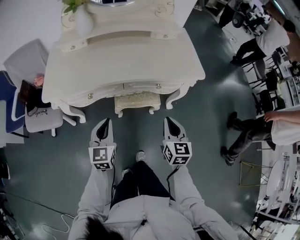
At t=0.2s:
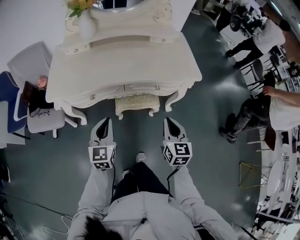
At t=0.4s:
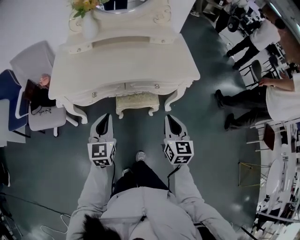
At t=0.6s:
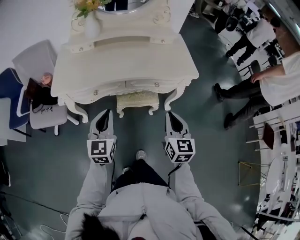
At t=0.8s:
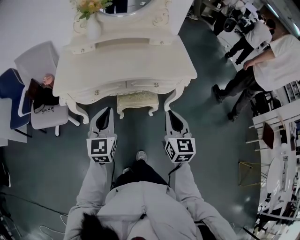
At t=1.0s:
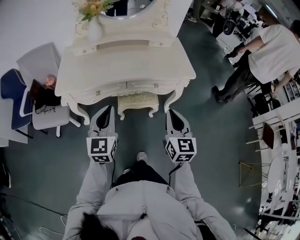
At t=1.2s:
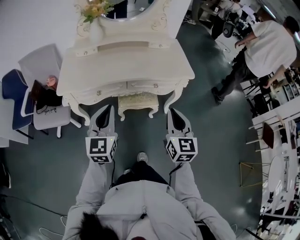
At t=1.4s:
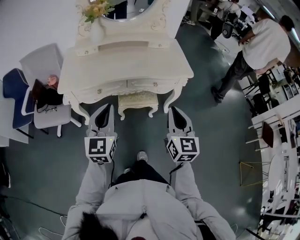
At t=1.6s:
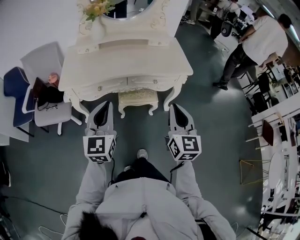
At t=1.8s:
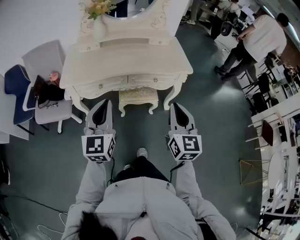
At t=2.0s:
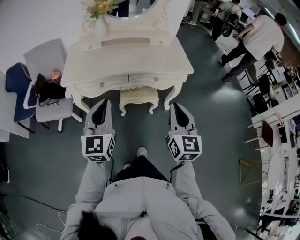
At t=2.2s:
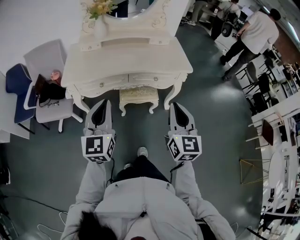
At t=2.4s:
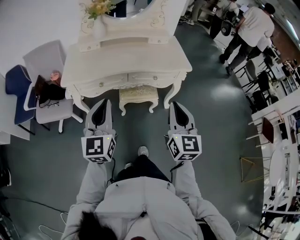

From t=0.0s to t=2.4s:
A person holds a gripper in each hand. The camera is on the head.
From t=0.0s to t=1.2s: Both grippers move upward and backward, some 20 cm.
From t=1.2s to t=2.4s: The two grippers go roughly 10 cm backward and upward.

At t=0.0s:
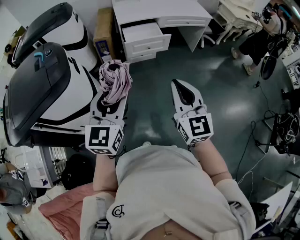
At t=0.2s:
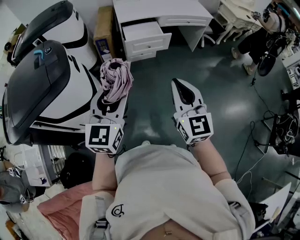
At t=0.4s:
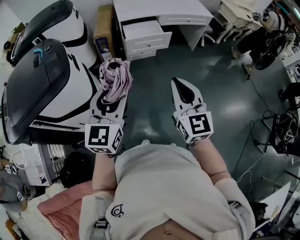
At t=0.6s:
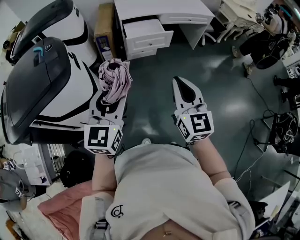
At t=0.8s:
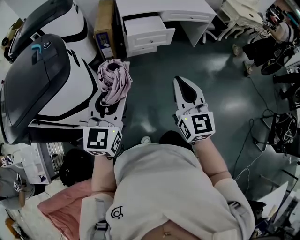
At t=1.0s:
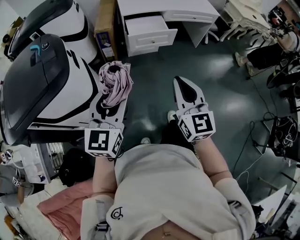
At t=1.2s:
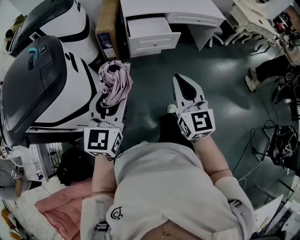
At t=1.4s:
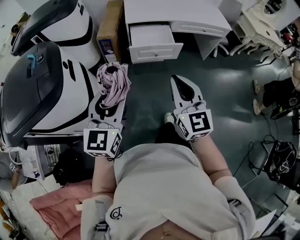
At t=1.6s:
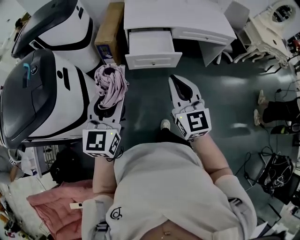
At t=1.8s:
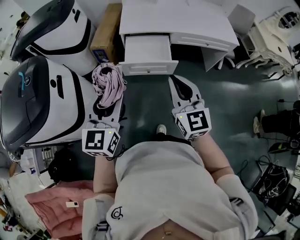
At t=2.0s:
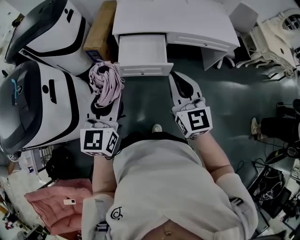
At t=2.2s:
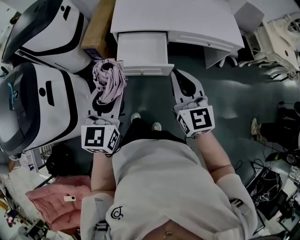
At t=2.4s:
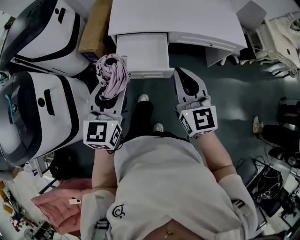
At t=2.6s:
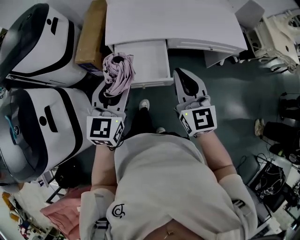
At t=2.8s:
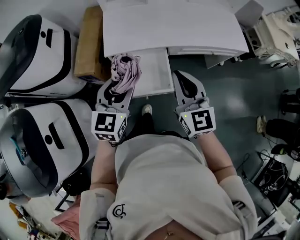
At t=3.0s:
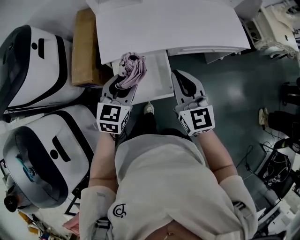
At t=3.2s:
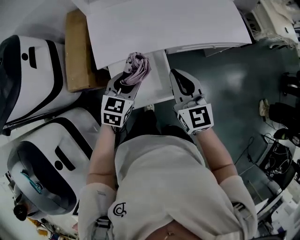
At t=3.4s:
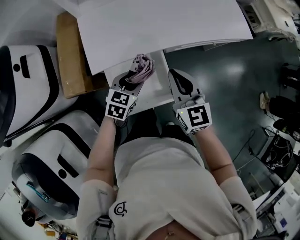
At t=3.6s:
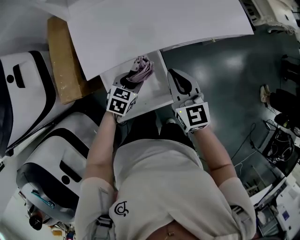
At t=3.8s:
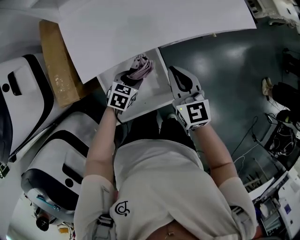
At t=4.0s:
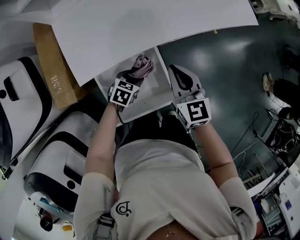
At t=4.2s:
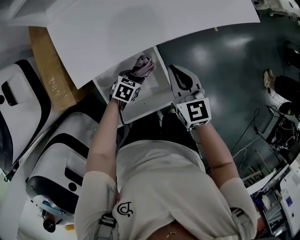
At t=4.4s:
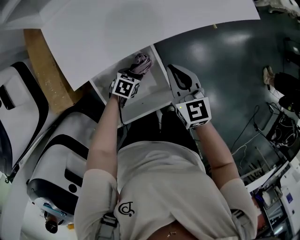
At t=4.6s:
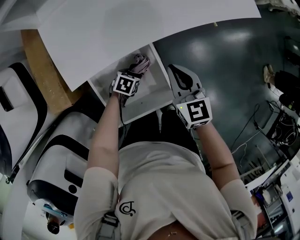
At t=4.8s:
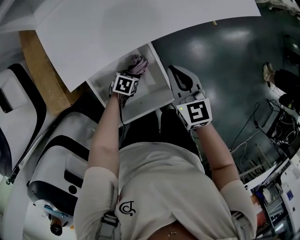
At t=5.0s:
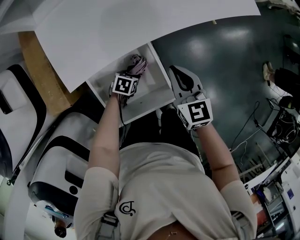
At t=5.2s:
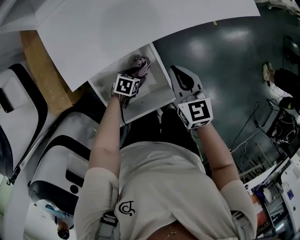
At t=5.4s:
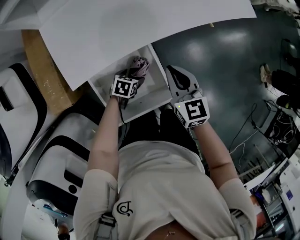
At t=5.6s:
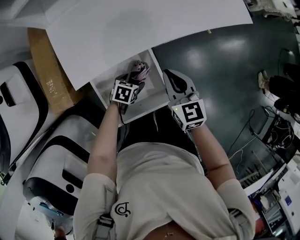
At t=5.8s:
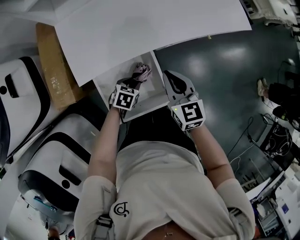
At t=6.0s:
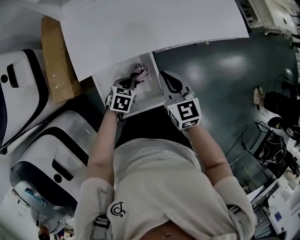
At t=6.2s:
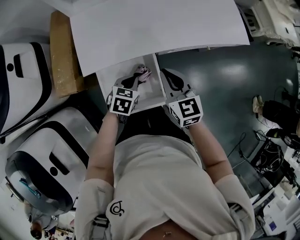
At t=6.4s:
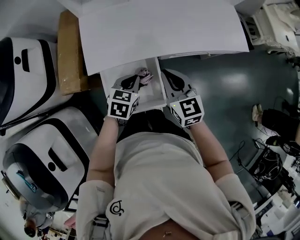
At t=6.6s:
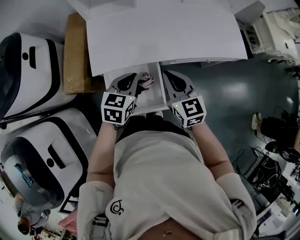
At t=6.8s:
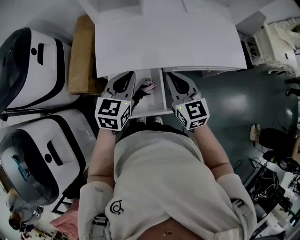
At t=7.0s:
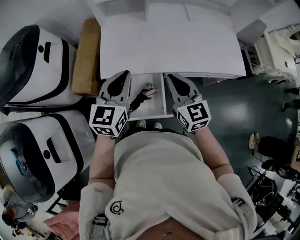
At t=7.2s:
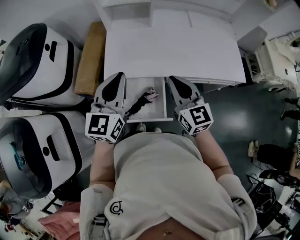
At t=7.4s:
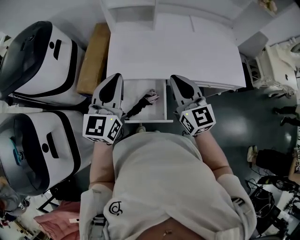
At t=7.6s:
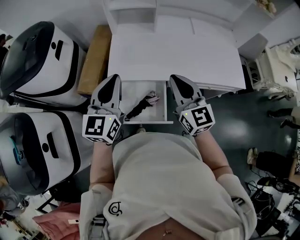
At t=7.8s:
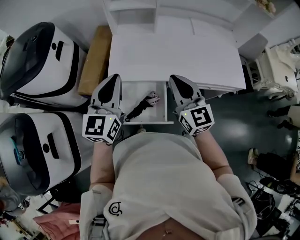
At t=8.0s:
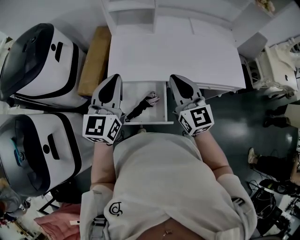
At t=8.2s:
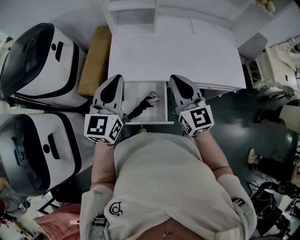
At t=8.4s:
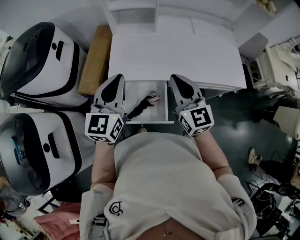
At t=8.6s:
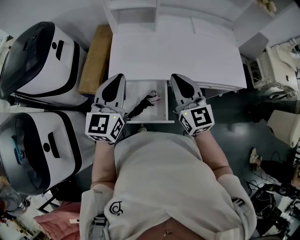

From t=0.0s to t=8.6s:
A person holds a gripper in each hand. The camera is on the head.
From t=0.0s to t=1.4s: The grippers both shift forward by approximately 15 cm.
From t=1.4s to t=2.8s: The two grippers travel together, forward, some 50 cm.
From t=2.8s to t=4.4s: The left gripper is displaced downward by some 40 cm, and tilts its fingers about 40 degrees downward. Meanwhile the right gripper goes approximately 20 cm downward, and changes its angle by approximately 30 degrees.
From t=4.4s to t=5.8s: The left gripper heads upward, covering roughly 5 cm, and opens and closes again.
From t=5.8s to t=7.2s: The left gripper shifts some 40 cm upward, points its fingers roughly 60 degrees further upward, and closes its fingers. Meanwhile the right gripper shifts approximately 20 cm upward, and swivels approximately 30 degrees.
From t=7.2s to t=8.6s: The grippers move only a little.

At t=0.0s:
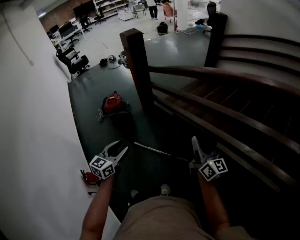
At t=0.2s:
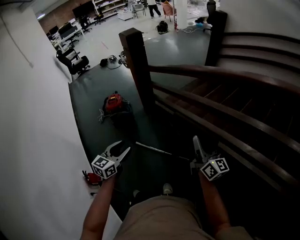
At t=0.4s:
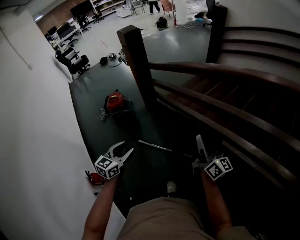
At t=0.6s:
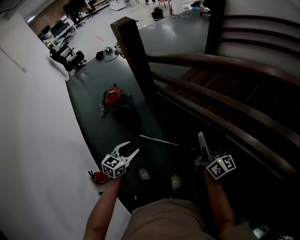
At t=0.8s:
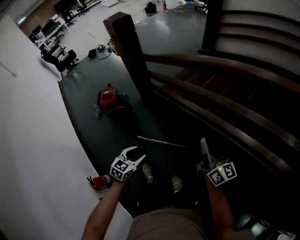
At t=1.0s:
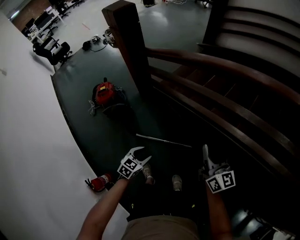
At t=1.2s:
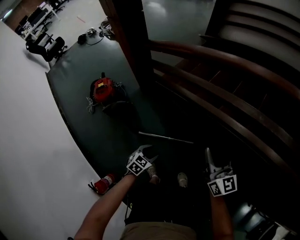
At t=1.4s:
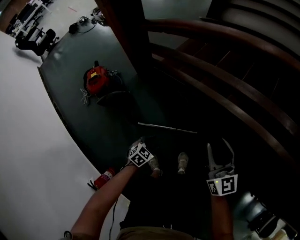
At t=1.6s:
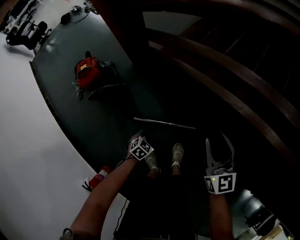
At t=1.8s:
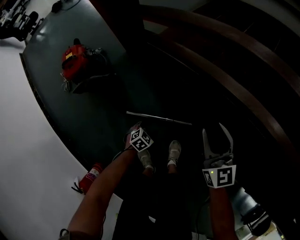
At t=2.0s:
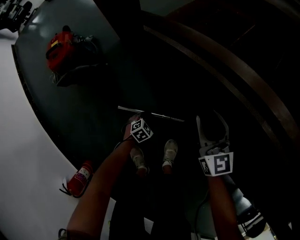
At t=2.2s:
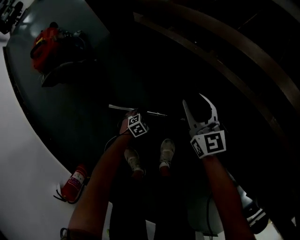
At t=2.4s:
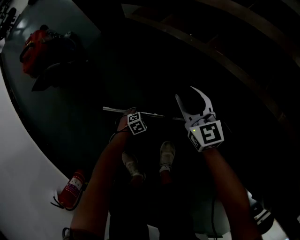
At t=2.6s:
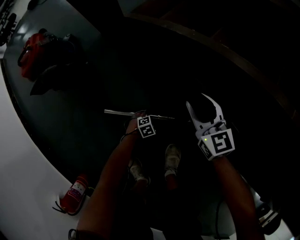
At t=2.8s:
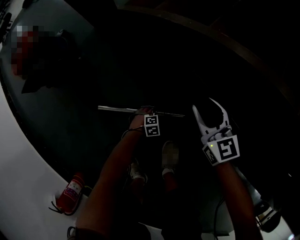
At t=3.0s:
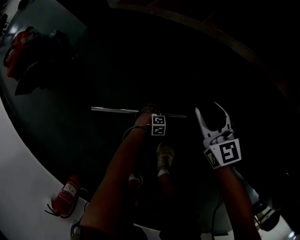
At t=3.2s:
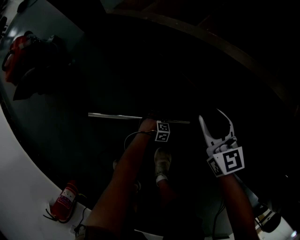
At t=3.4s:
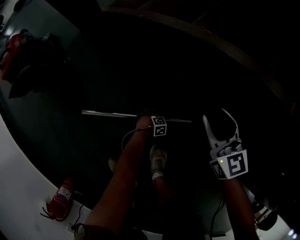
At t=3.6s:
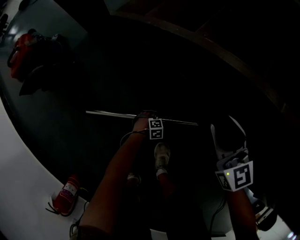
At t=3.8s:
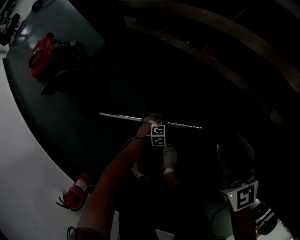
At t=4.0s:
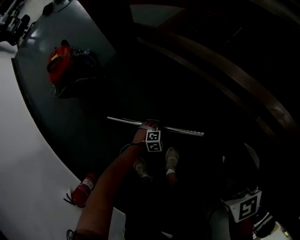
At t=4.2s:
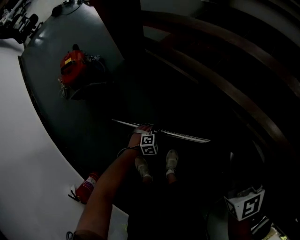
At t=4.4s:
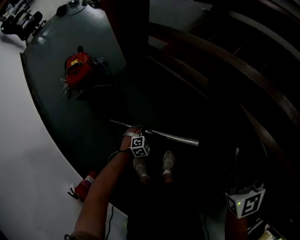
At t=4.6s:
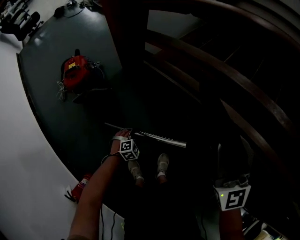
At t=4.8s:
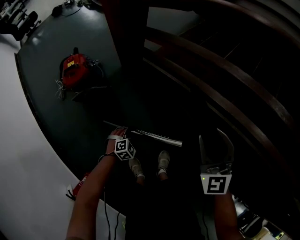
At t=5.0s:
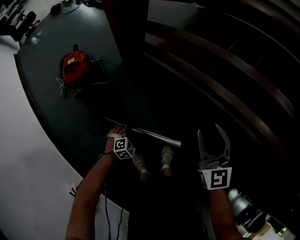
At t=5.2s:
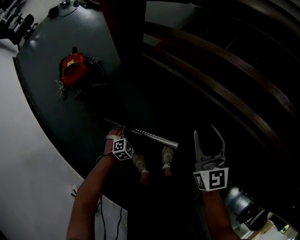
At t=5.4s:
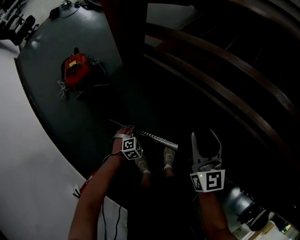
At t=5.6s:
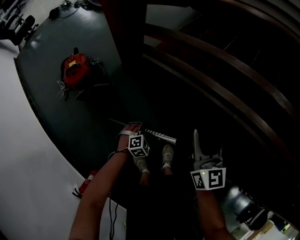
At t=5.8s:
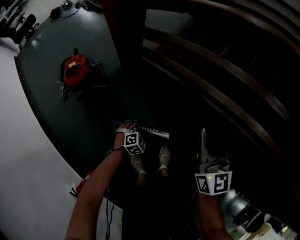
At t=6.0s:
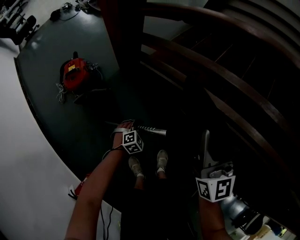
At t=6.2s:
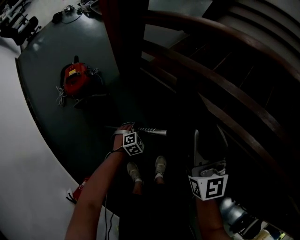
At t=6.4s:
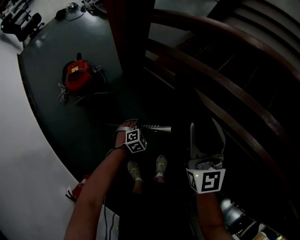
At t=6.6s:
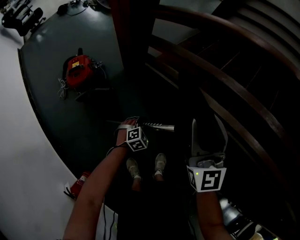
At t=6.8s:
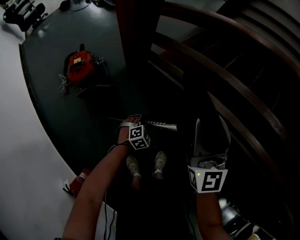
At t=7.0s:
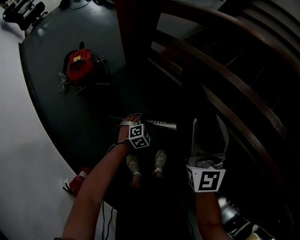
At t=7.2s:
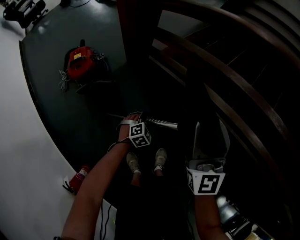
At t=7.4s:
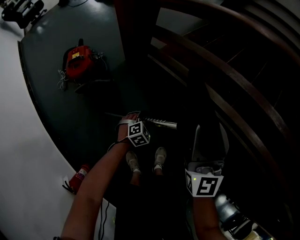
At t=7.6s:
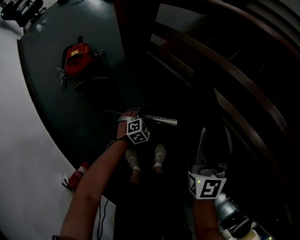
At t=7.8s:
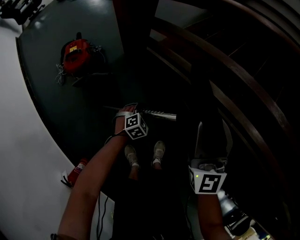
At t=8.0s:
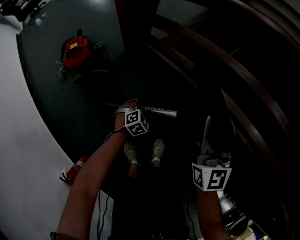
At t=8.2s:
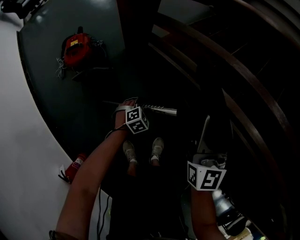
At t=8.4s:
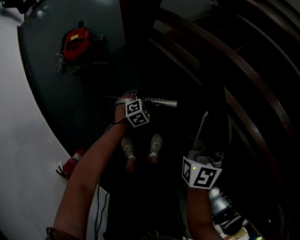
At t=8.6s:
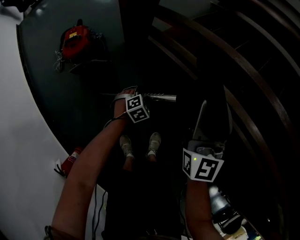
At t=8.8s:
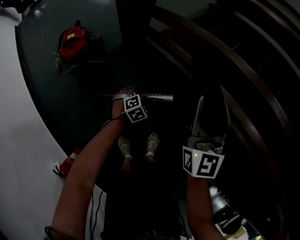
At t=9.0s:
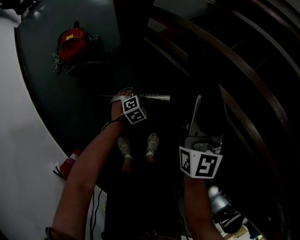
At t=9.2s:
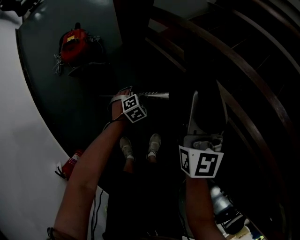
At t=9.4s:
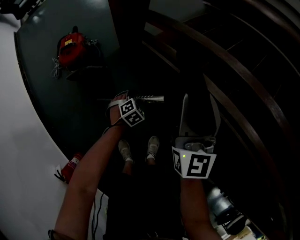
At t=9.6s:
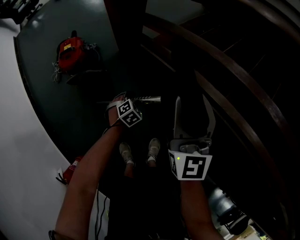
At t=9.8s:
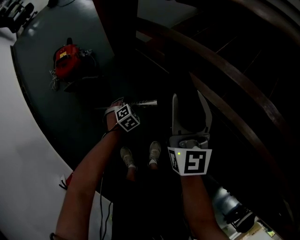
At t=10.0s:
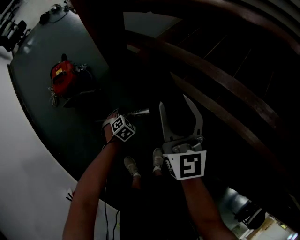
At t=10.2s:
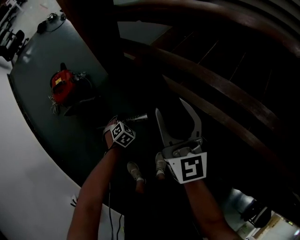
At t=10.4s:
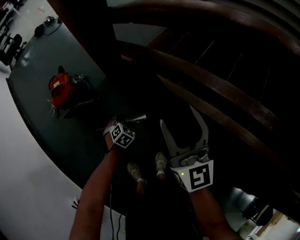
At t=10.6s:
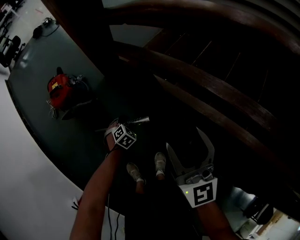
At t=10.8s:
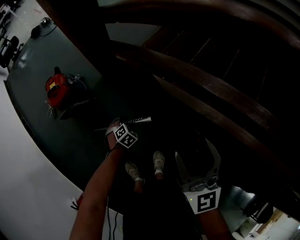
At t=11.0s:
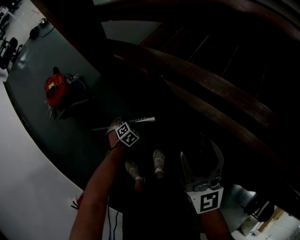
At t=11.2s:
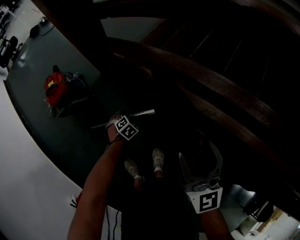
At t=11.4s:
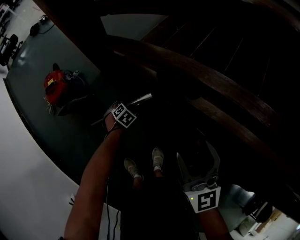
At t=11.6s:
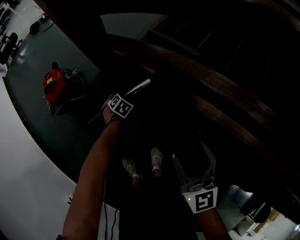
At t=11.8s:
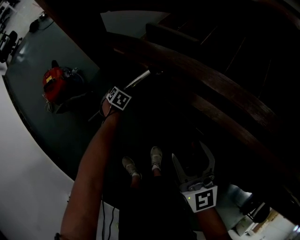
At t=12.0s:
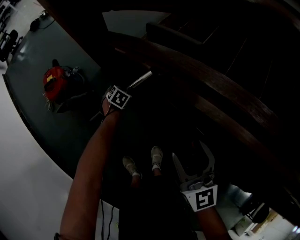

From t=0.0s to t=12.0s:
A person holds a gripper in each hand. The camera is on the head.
From t=0.0s to t=1.6s: The left gripper moves downward, approximately 60 cm, and tilts its fingers some 40 degrees downward; the right gripper is displaced downward by about 30 cm, and changes its angle by approximately 30 degrees.
From t=1.6s to t=3.0s: The grippers both shift downward by about 50 cm. The left gripper twists some 40 degrees clockwise, seen from behind.
From t=3.0s to t=4.4s: Both grippers move upward, approximately 50 cm. The right gripper rotates roughly 30 degrees. Meanwhile the left gripper rotates some 30 degrees.
From t=4.4s to t=6.0s: The right gripper moves to the left, roughly 5 cm, and reaches approximately 10 cm downward, then returns. The left gripper heads upward, covering approximately 15 cm.
From t=7.6s to t=9.0s: The grippers stay close to where they were, moving slightly.
From t=9.0s to t=10.4s: There are only small adjustments of the grippers.
From t=10.4s to t=12.0s: The right gripper travels to the right and backward by roughly 10 cm, while the left gripper moves forward, some 10 cm, and opens its fingers.
